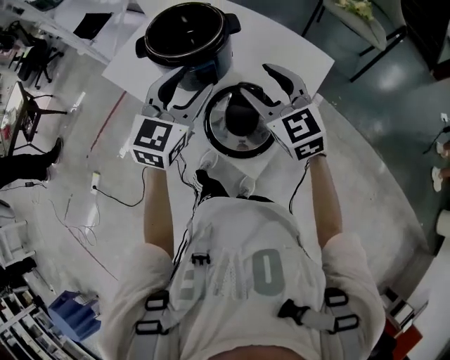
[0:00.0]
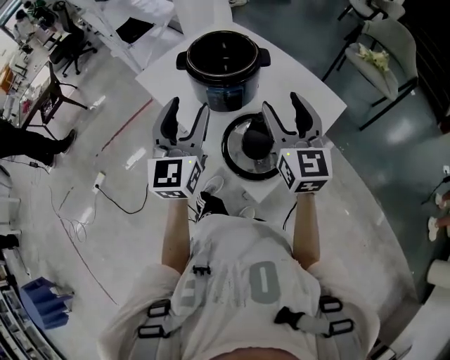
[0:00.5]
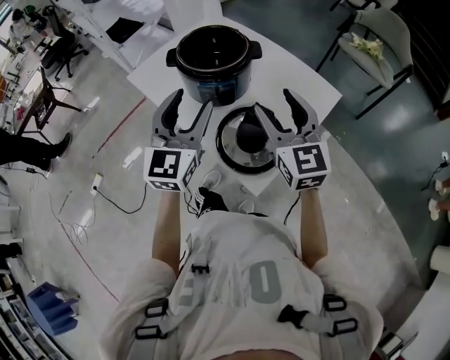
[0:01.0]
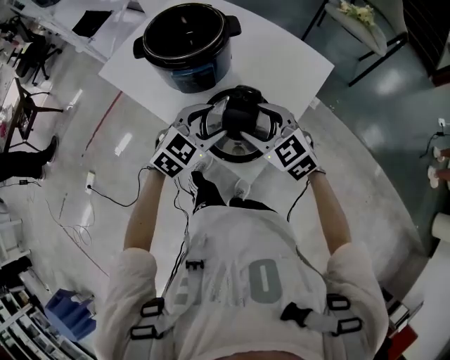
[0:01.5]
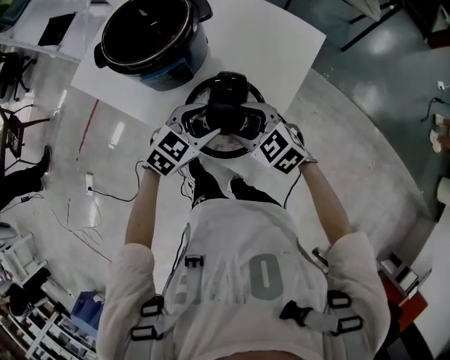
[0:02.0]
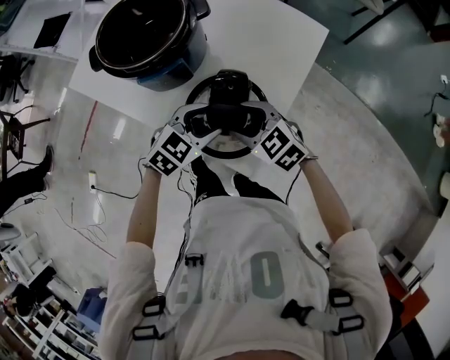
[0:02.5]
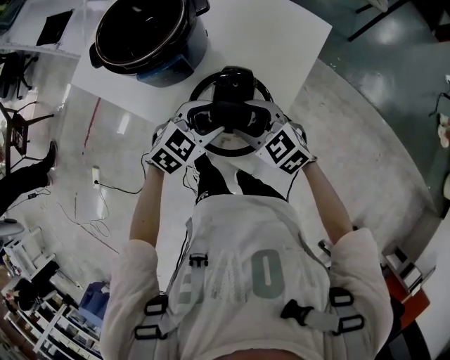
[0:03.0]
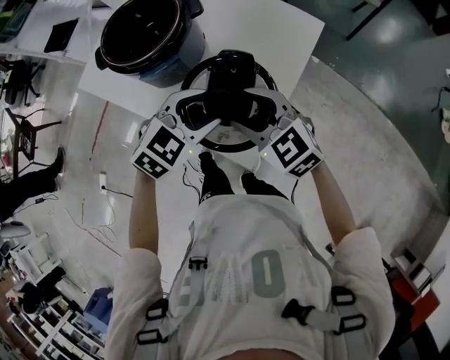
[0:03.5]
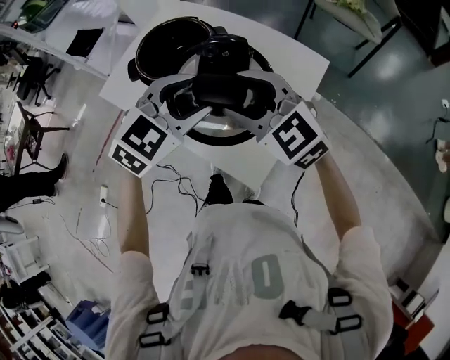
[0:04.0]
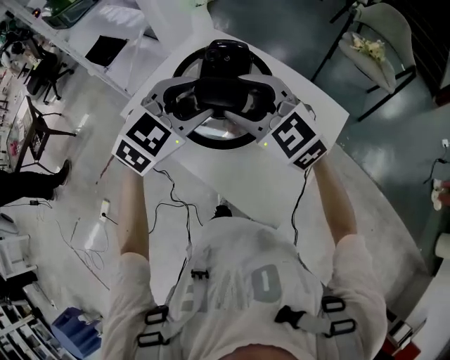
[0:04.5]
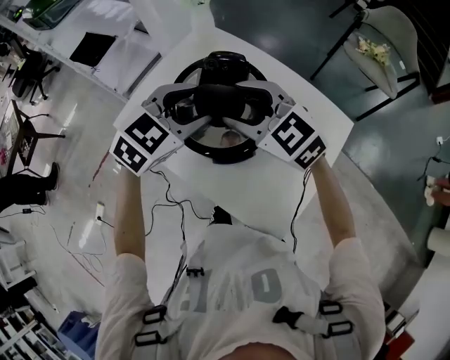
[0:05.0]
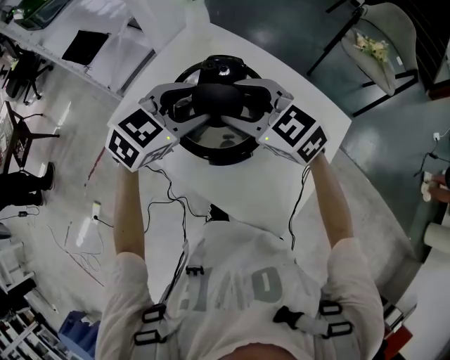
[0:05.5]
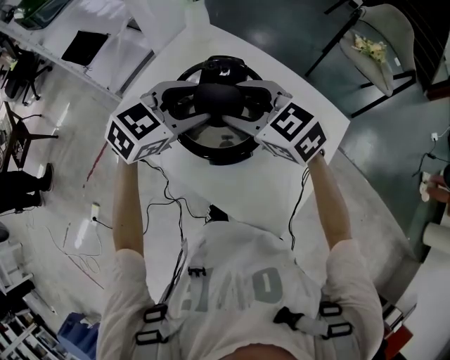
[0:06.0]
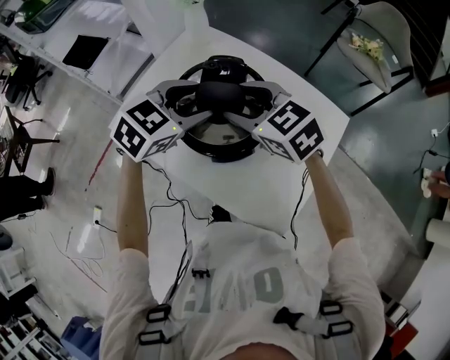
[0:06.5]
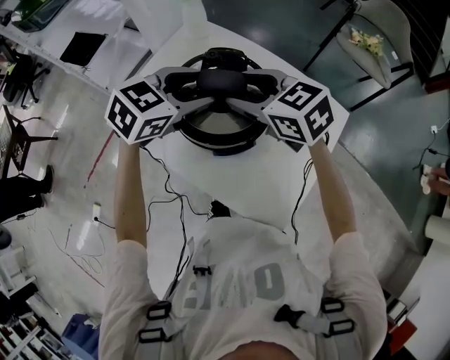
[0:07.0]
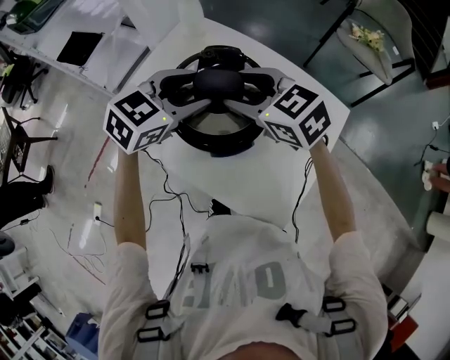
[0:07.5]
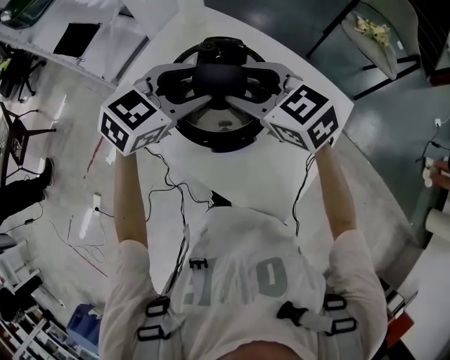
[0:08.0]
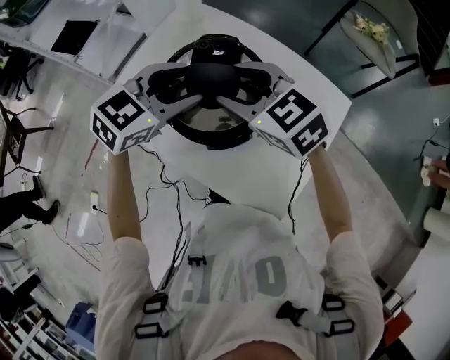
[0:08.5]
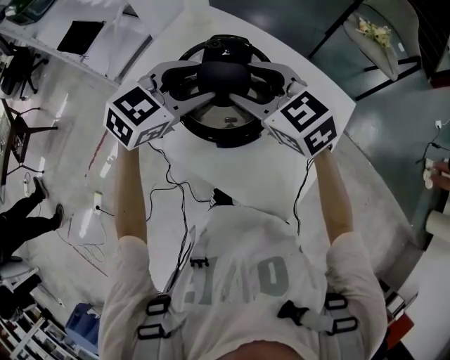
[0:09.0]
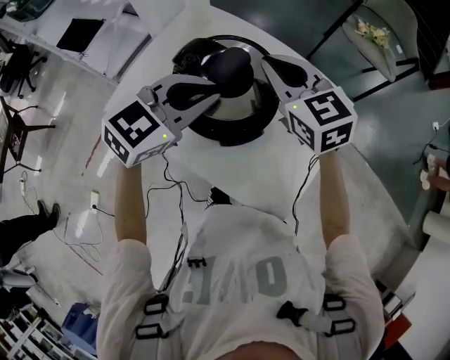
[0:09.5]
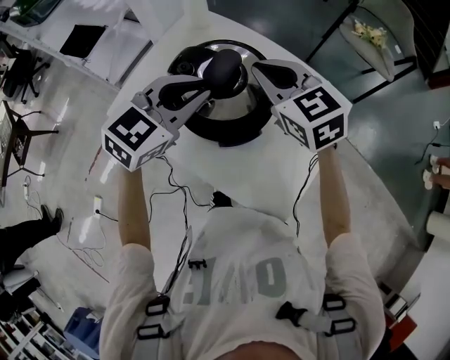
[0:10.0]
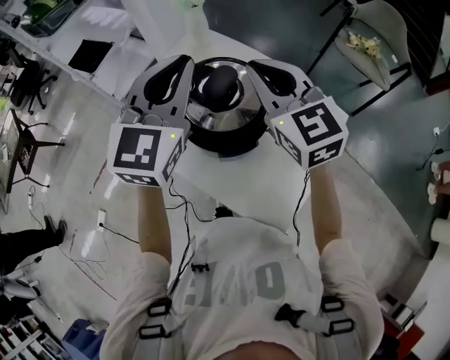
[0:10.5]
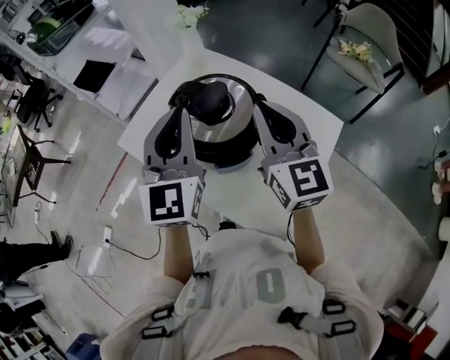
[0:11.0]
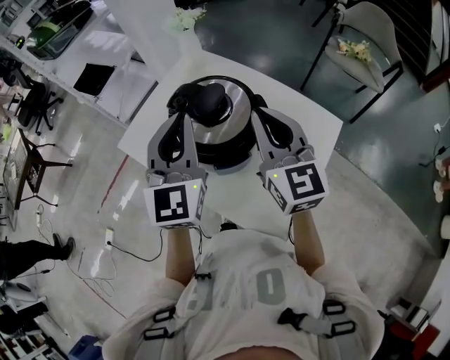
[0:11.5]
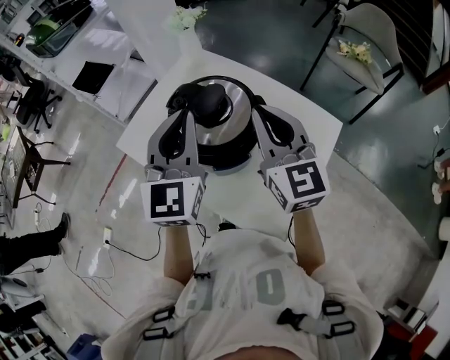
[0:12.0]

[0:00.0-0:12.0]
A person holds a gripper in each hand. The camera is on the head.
0:00.0 to 0:02.0: Both grippers travel together downward, approximately 20 cm. The right gripper swivels roughly 30 degrees, while the left gripper turns by roughly 40 degrees.
0:02.0 to 0:04.0: The grippers both shift upward by roughly 25 cm. The right gripper turns by some 20 degrees, while the left gripper swivels about 20 degrees.
0:04.0 to 0:06.0: Both grippers travel together forward and to the left, some 25 cm.
0:06.0 to 0:08.0: The grippers move only a little.
0:08.0 to 0:10.0: The right gripper closes. Meanwhile the left gripper closes up.
0:10.0 to 0:12.0: The left gripper moves upward, approximately 10 cm, and turns by roughly 50 degrees. Meanwhile the right gripper travels backward and upward by about 10 cm, and rotates about 30 degrees.

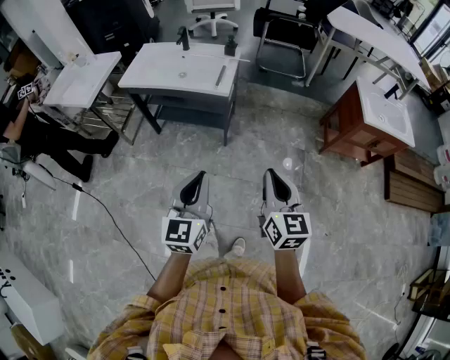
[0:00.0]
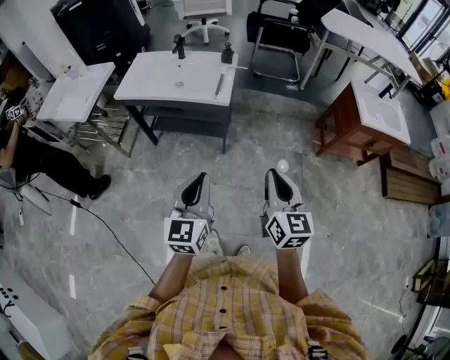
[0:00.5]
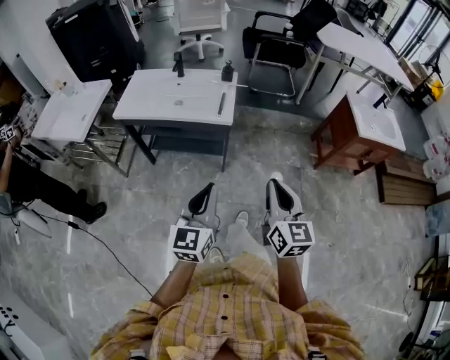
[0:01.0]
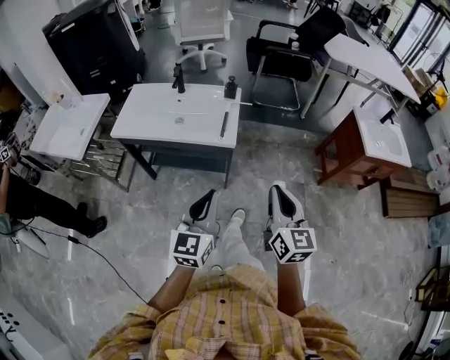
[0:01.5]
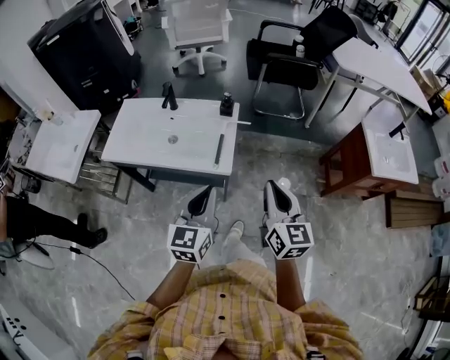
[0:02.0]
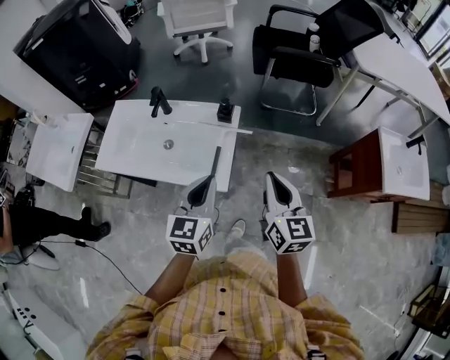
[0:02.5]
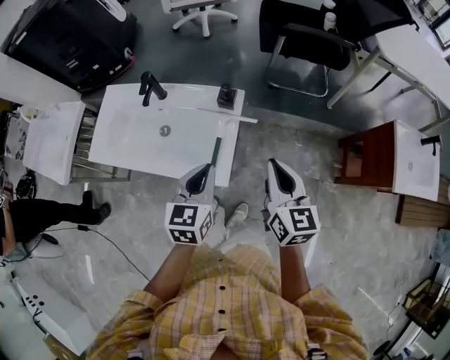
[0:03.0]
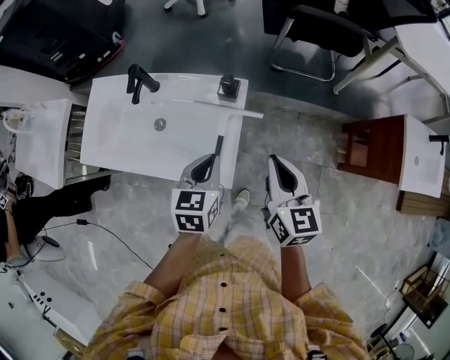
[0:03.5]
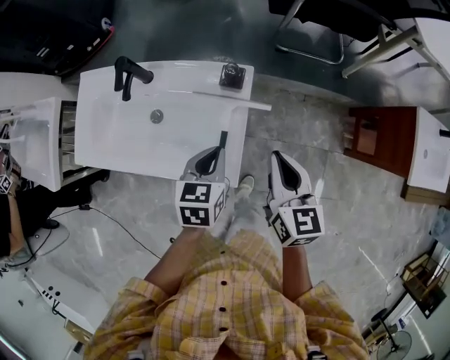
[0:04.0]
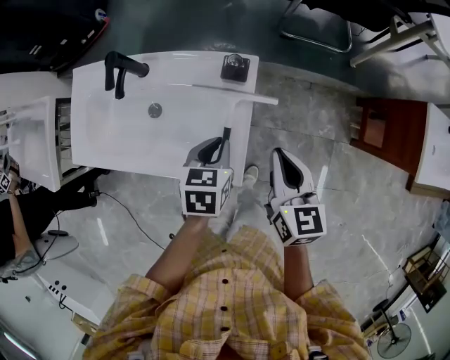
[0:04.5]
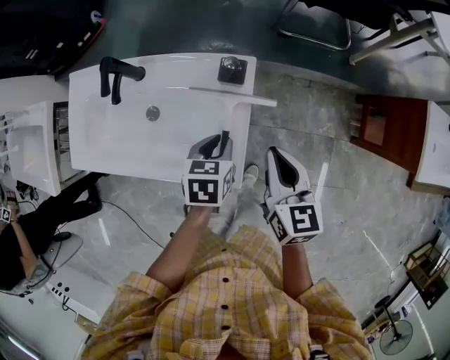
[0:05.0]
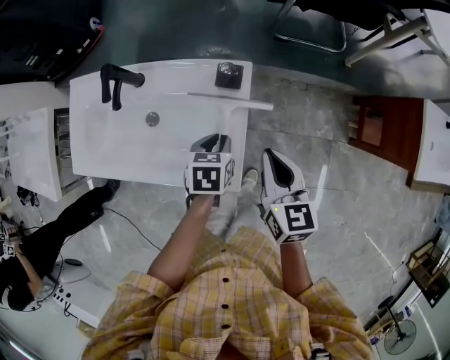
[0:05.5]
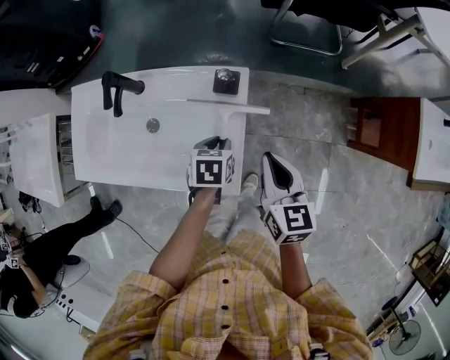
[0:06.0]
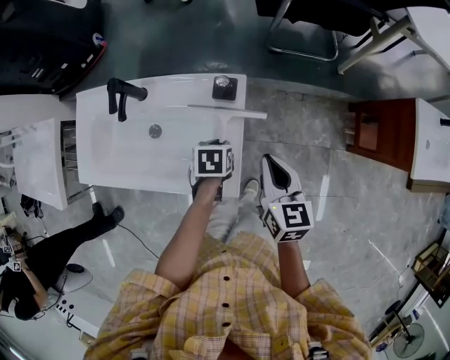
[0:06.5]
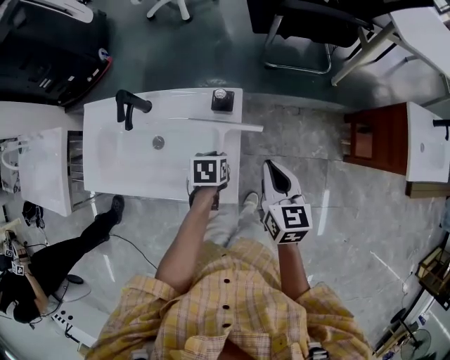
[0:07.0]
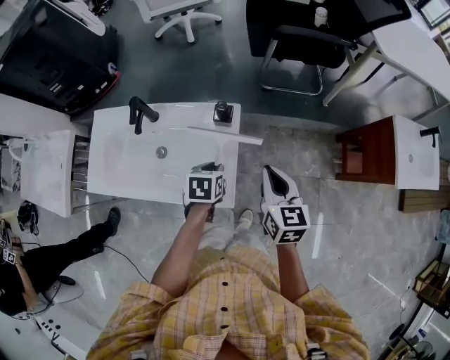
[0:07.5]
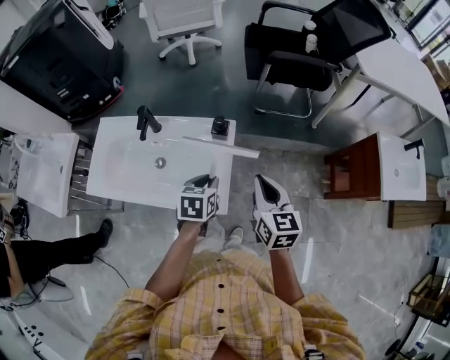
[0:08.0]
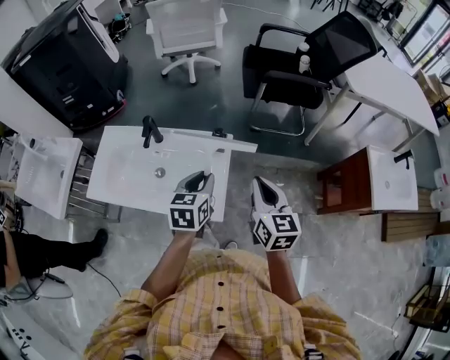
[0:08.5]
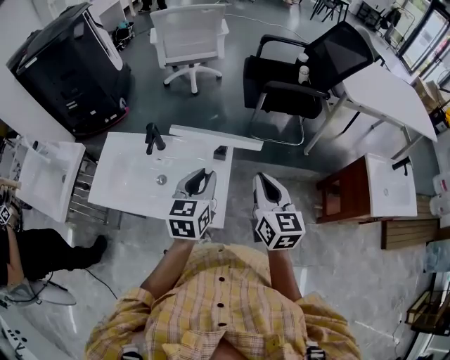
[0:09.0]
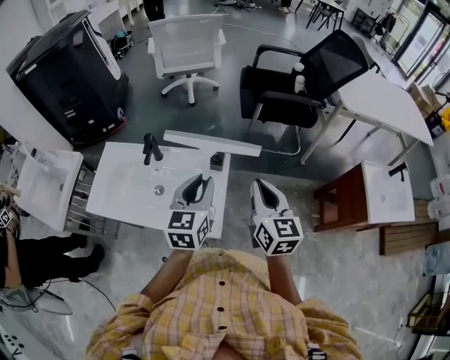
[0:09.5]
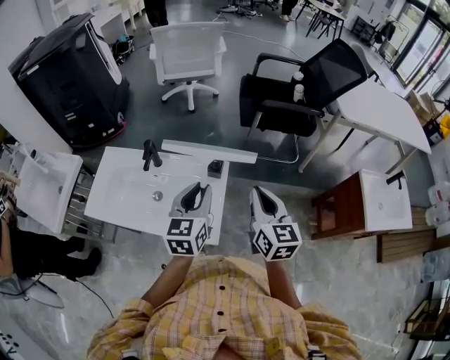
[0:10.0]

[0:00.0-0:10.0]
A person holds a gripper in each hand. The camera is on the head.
0:00.0 to 0:02.0: Both grippers move forward, roughly 35 cm.
0:02.0 to 0:04.0: Both grippers travel together forward and downward, approximately 30 cm. The left gripper tilts its fingers some 30 degrees downward.
0:04.0 to 0:06.0: The left gripper shifts approximately 10 cm downward, and opens its fingers.
0:06.0 to 0:08.0: Both grippers move upward, roughly 15 cm.
0:08.0 to 0:10.0: The right gripper heads upward, covering some 10 cm. Meanwhile the left gripper shifts approximately 15 cm upward, and points its fingers some 30 degrees further upward.

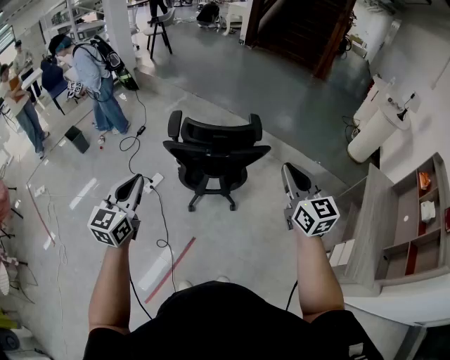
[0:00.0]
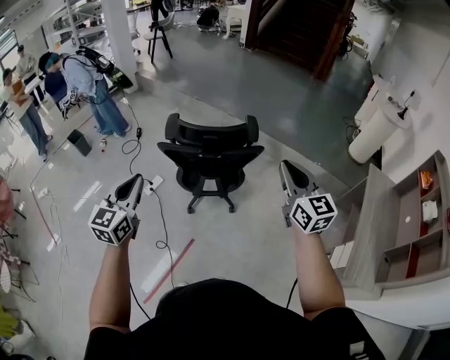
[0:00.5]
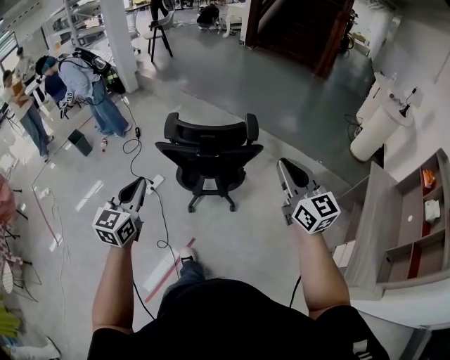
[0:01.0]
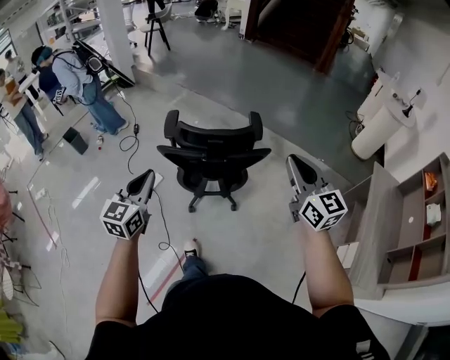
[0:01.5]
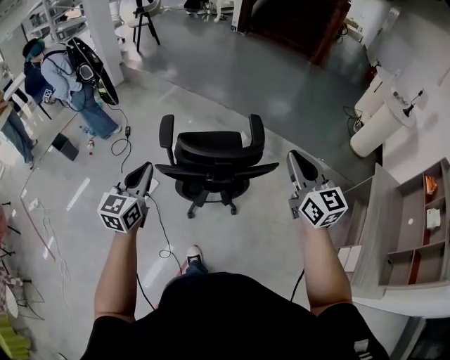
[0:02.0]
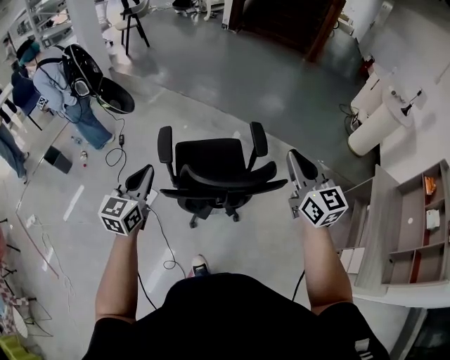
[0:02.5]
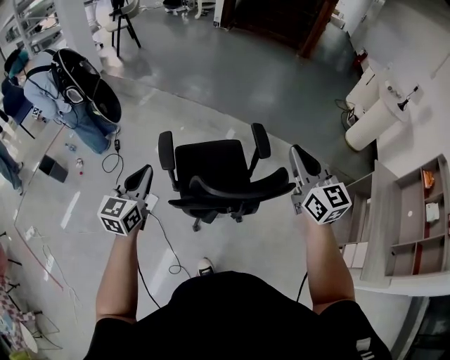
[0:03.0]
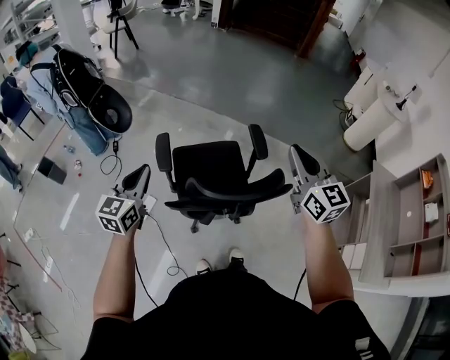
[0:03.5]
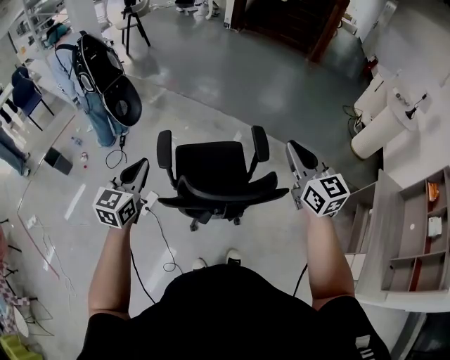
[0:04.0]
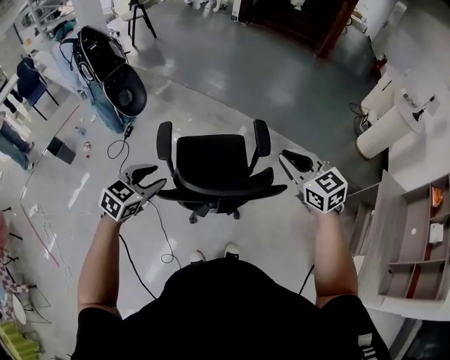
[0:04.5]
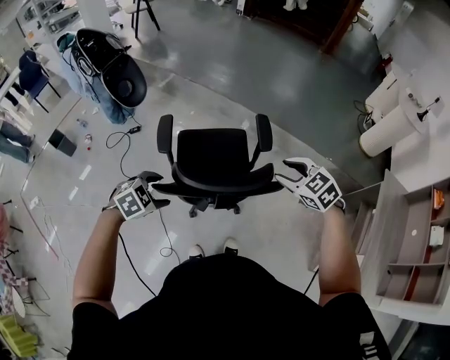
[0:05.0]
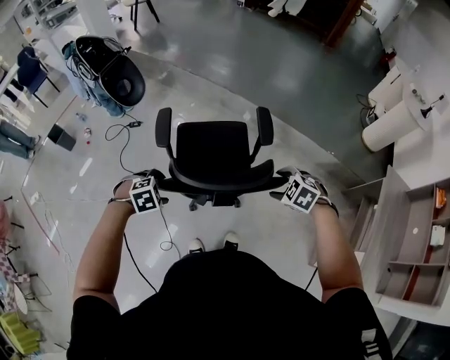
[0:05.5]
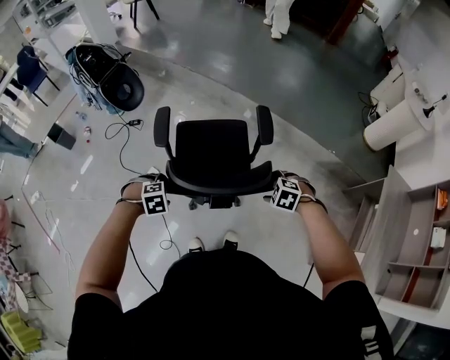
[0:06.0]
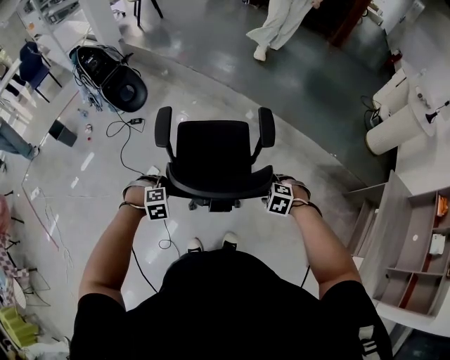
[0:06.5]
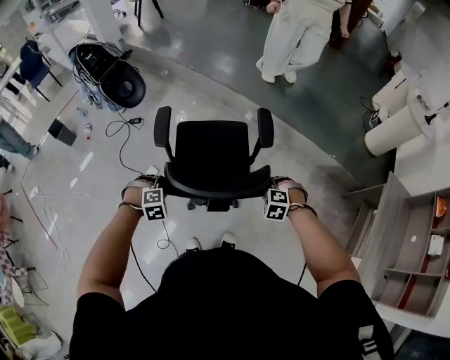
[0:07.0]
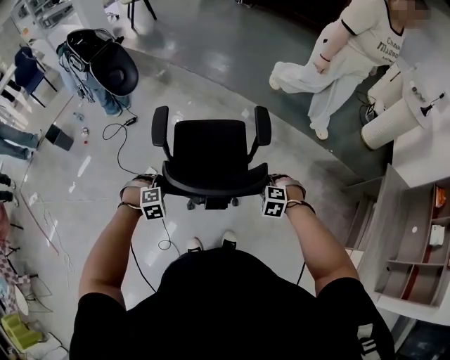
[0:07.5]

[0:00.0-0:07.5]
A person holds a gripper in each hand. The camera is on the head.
0:00.0 to 0:02.0: The two grippers go approximately 20 cm forward.
0:02.0 to 0:04.0: The grippers both shift forward by some 15 cm.
0:04.0 to 0:05.5: Both grippers travel together downward, approximately 25 cm. The left gripper angles its fingers downward, by approximately 60 degrees, and opens up; the right gripper points its fingers approximately 60 degrees further downward, and opens its fingers.
0:05.5 to 0:07.5: The two grippers go roughly 10 cm downward. The left gripper swivels approximately 20 degrees, and closes its fingers; the right gripper changes its angle by some 20 degrees, and closes.
